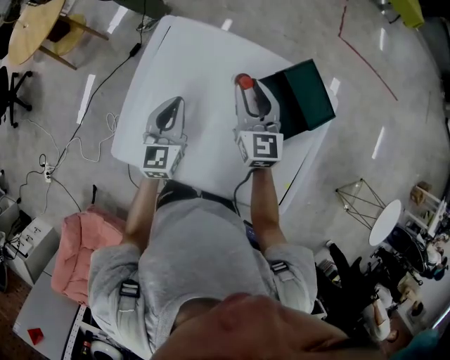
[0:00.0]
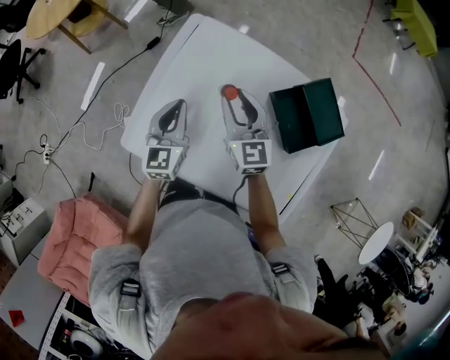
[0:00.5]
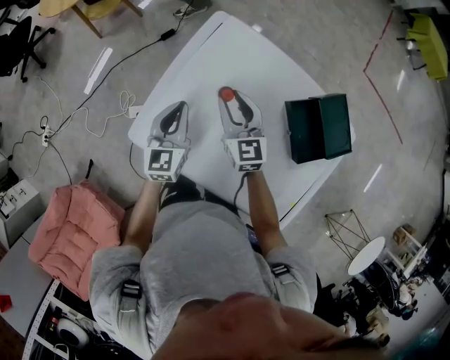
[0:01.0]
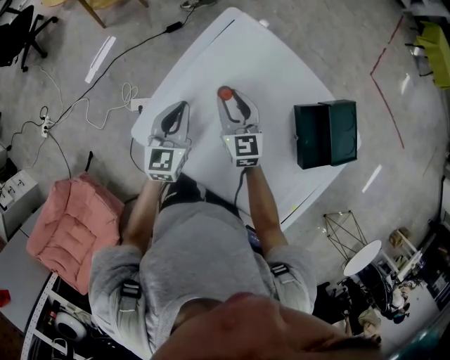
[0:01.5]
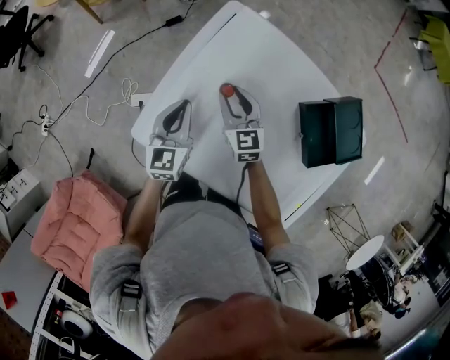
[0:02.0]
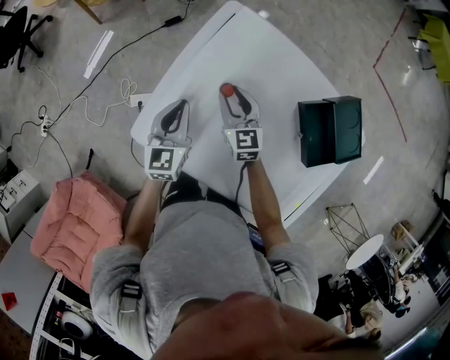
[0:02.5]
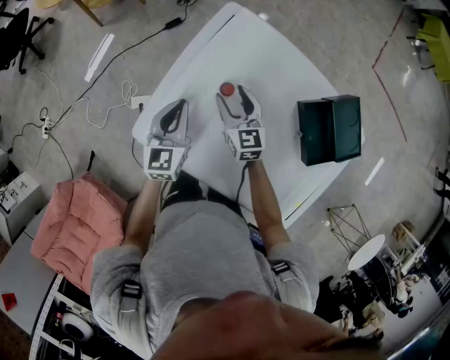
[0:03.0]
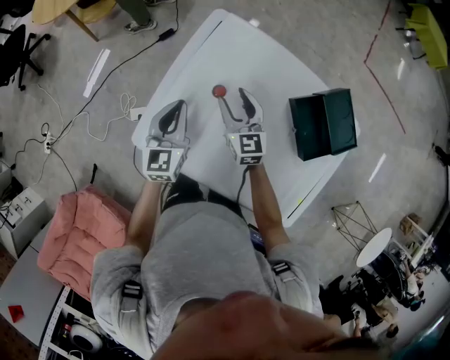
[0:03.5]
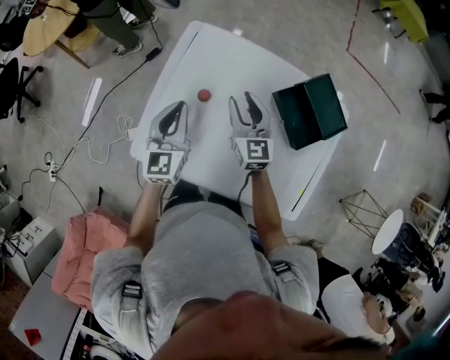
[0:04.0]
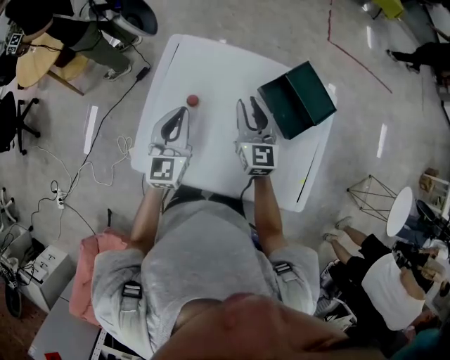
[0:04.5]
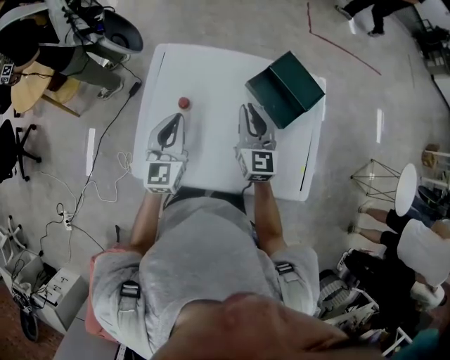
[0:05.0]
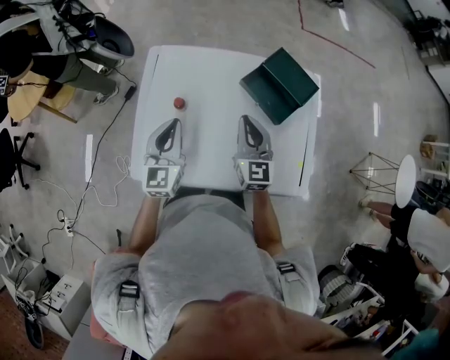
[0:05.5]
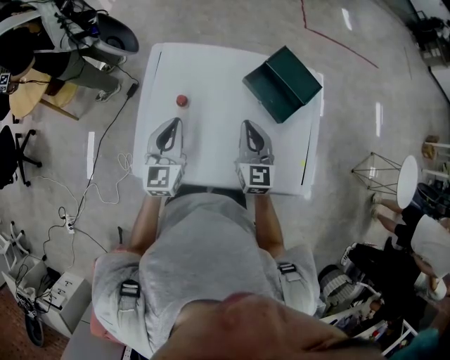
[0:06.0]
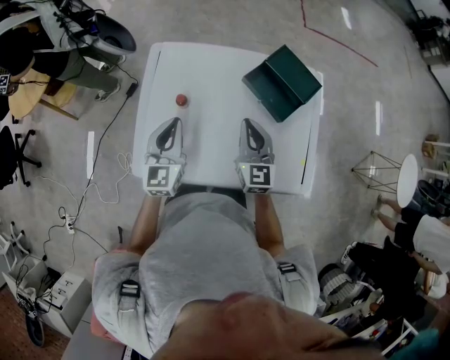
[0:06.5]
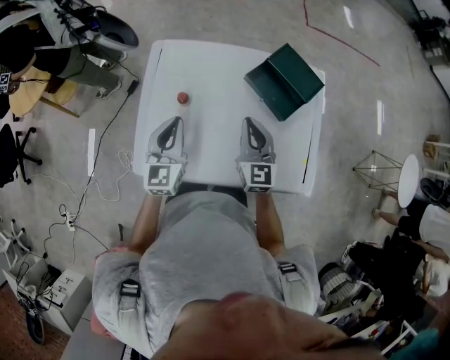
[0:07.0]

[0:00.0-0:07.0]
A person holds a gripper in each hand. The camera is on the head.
0:00.0 to 0:02.0: The left gripper shifts about 15 cm to the left and downward; the right gripper moves to the left and downward, about 25 cm, and changes its angle by about 20 degrees.
0:02.0 to 0:03.5: The right gripper opens its fingers.
0:03.5 to 0:05.0: The right gripper moves about 20 cm, turns by about 30 degrees, and closes up. Meanwhile the left gripper moves upward, approximately 10 cm, and swivels roughly 20 degrees.
0:05.0 to 0:07.0: The right gripper heads backward, covering some 5 cm.

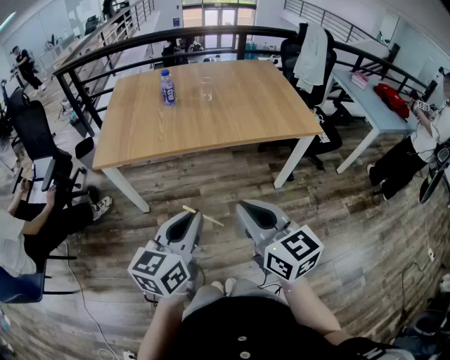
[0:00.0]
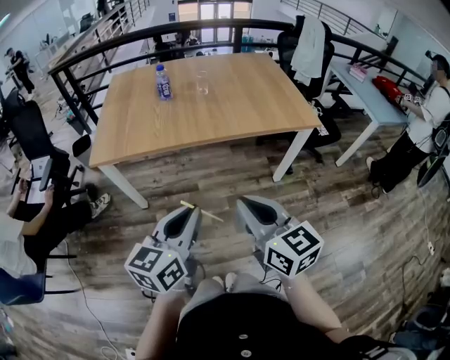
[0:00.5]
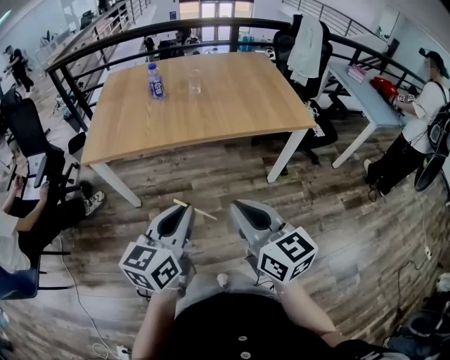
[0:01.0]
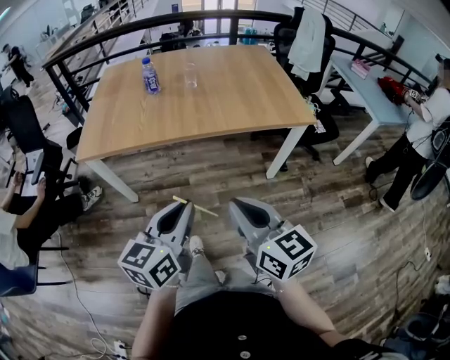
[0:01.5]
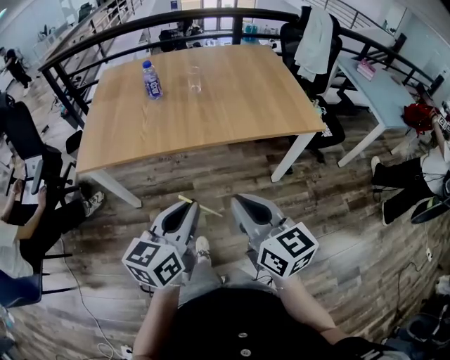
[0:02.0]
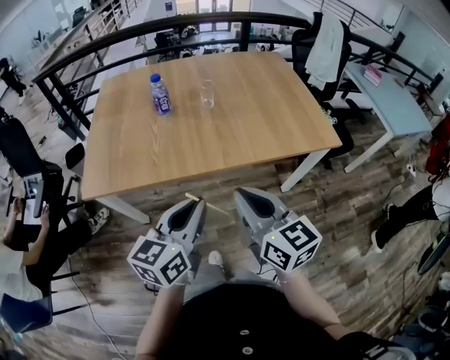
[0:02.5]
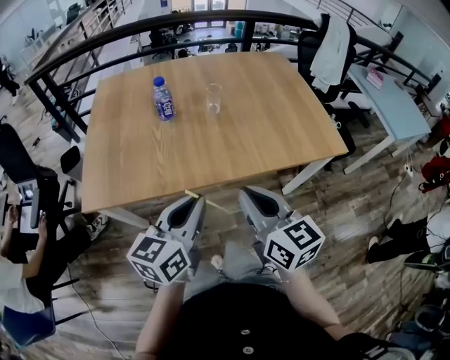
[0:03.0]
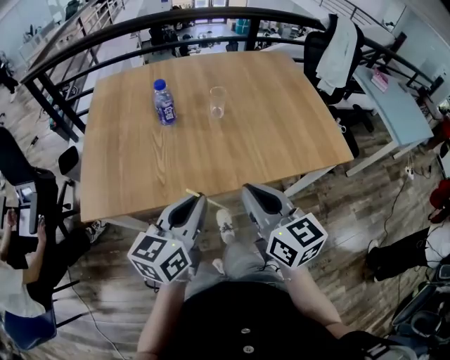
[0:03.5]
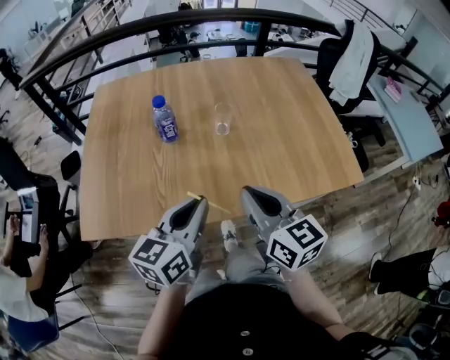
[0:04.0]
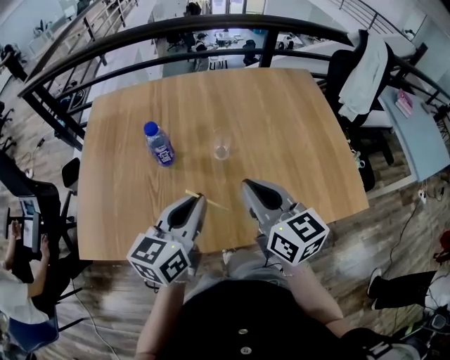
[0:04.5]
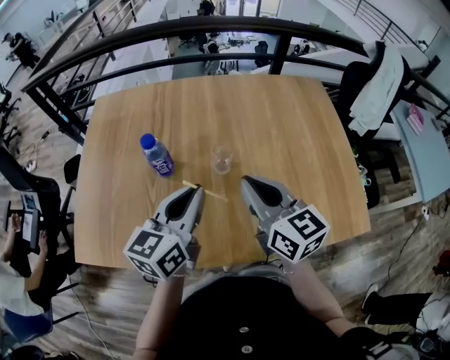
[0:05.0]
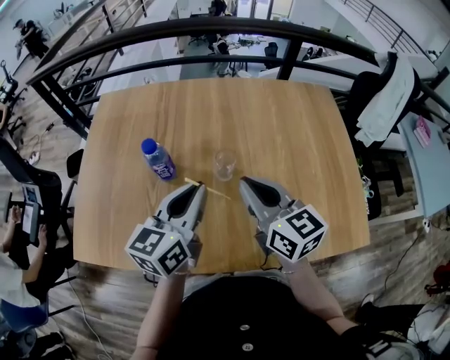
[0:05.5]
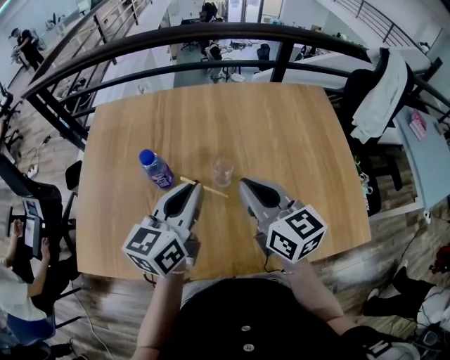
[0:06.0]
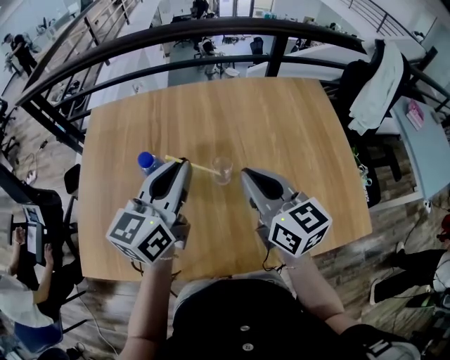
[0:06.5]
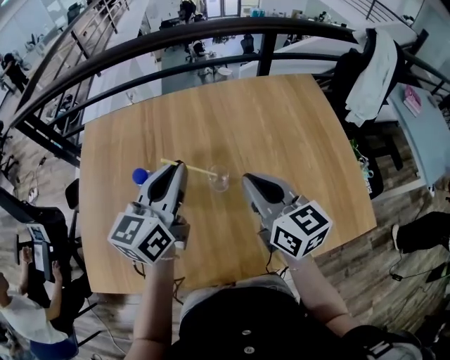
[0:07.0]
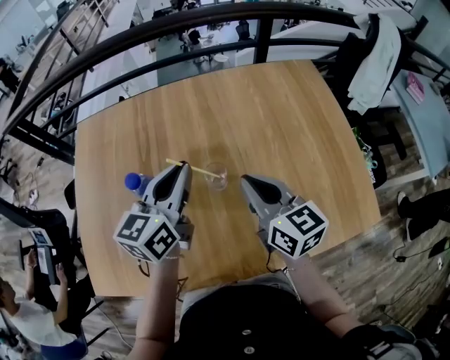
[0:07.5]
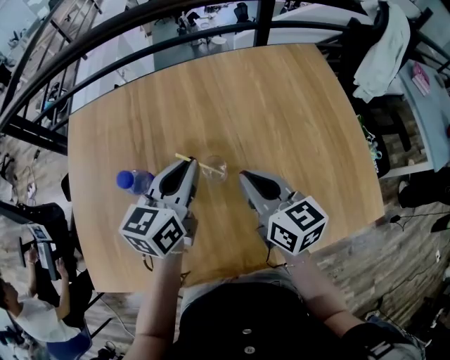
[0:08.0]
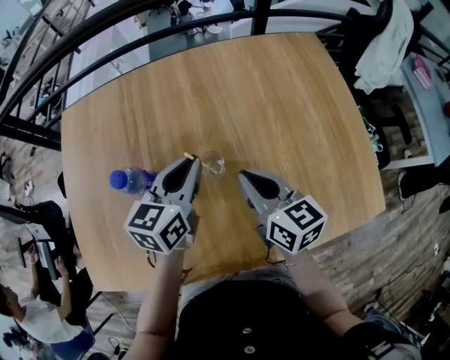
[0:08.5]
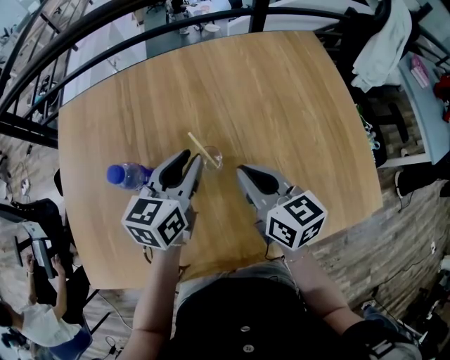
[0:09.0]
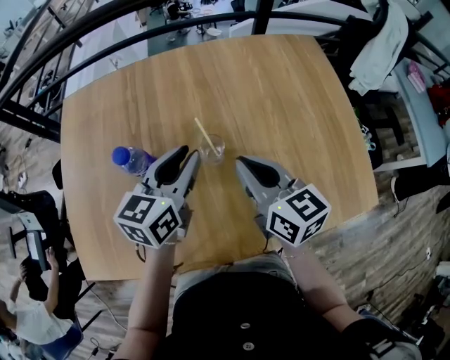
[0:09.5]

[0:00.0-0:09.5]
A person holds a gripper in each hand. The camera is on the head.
0:00.0 to 0:02.0: The grippers both shift forward and to the right by roughly 15 cm.
0:02.0 to 0:04.0: Both grippers move forward, some 35 cm.
0:04.0 to 0:05.5: The grippers both shift forward by approximately 25 cm.
0:05.5 to 0:07.5: The right gripper is displaced forward by approximately 5 cm, while the left gripper is displaced forward by roughly 10 cm.
0:07.5 to 0:09.5: The left gripper travels downward by some 5 cm.

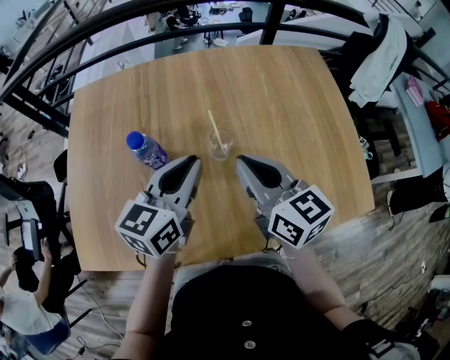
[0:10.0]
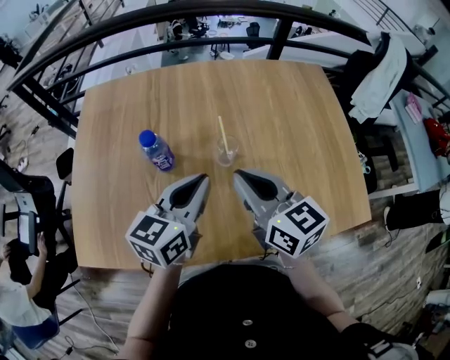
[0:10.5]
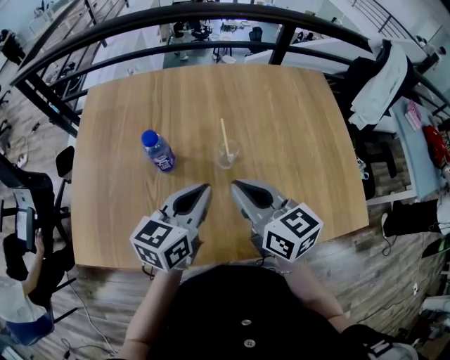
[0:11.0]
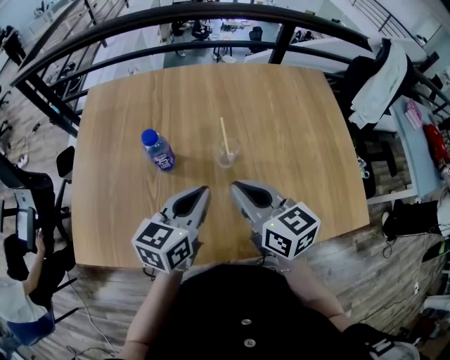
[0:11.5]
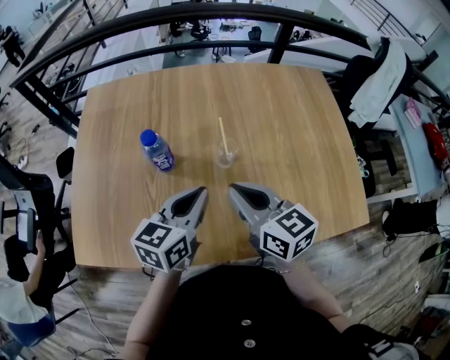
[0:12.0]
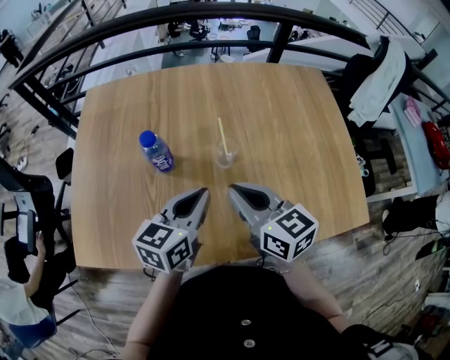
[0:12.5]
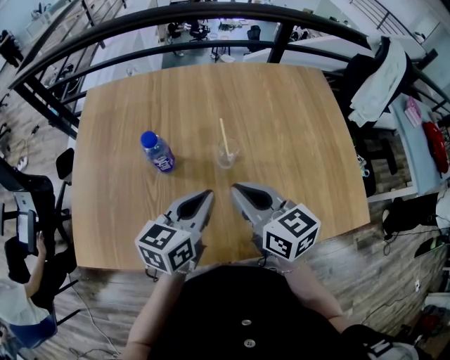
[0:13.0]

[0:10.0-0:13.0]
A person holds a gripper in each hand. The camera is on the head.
0:10.0 to 0:11.5: The right gripper shifts by roughly 5 cm, while the left gripper is displaced backward by approximately 5 cm.
0:11.5 to 0:13.0: Neither gripper changes place.

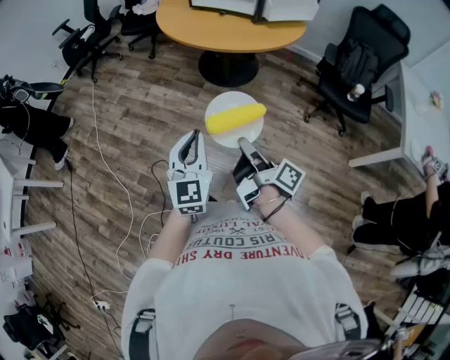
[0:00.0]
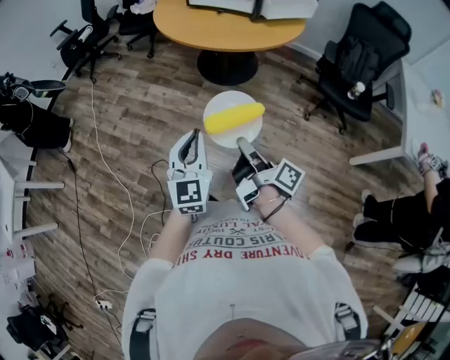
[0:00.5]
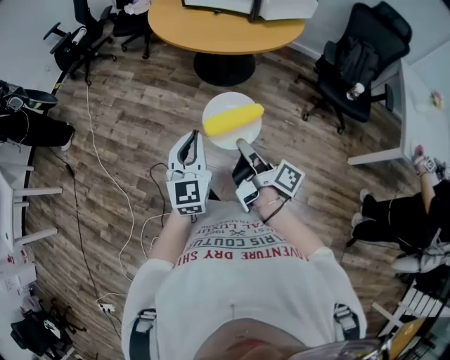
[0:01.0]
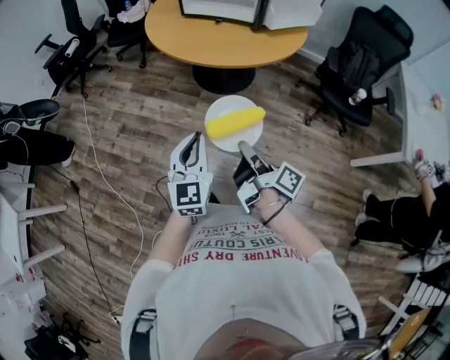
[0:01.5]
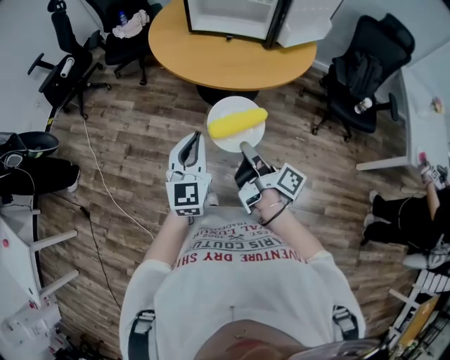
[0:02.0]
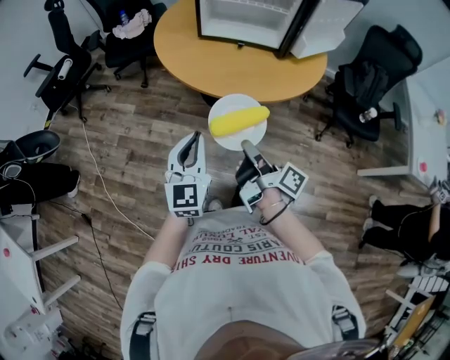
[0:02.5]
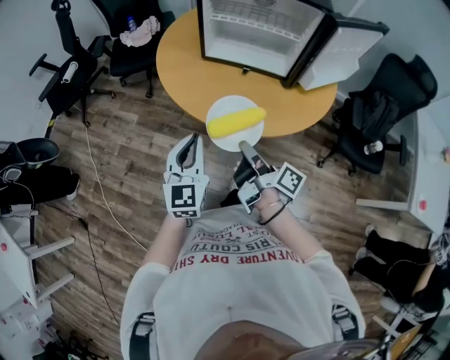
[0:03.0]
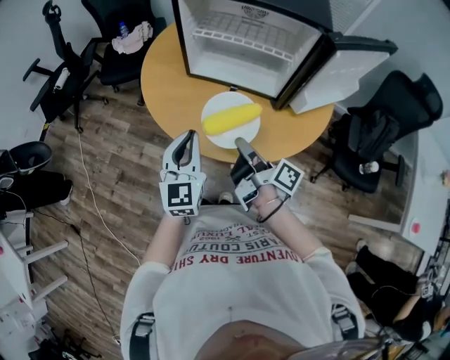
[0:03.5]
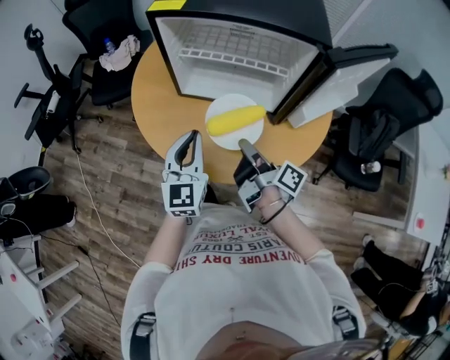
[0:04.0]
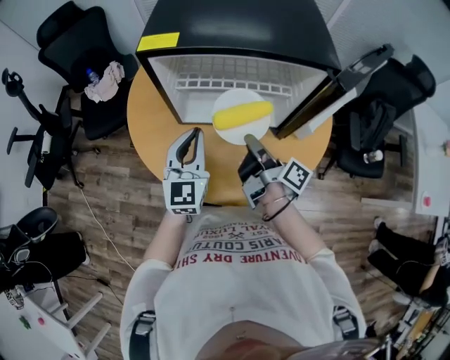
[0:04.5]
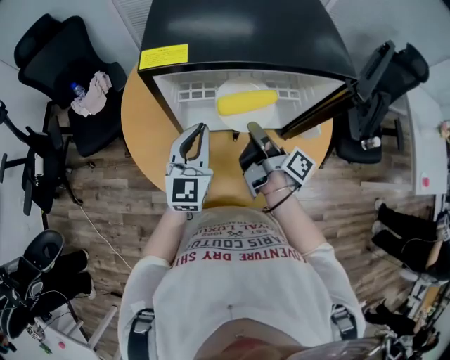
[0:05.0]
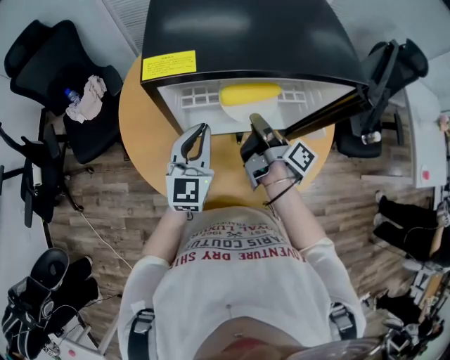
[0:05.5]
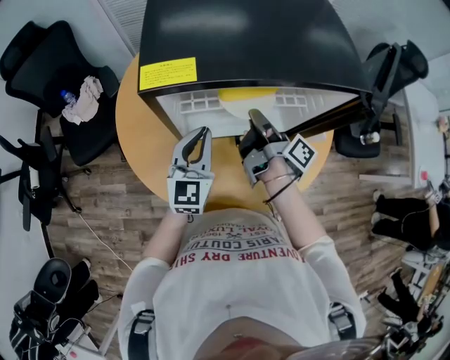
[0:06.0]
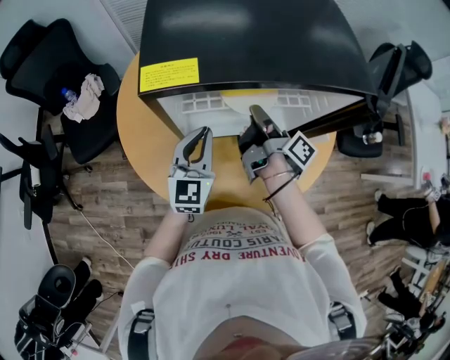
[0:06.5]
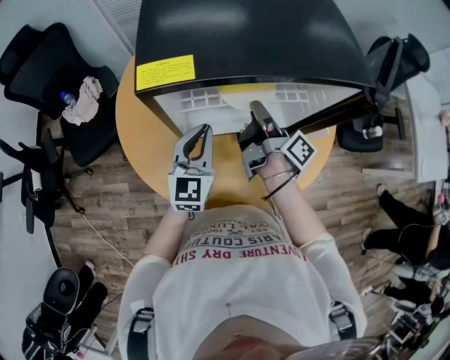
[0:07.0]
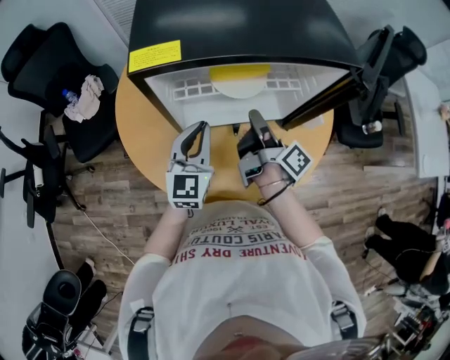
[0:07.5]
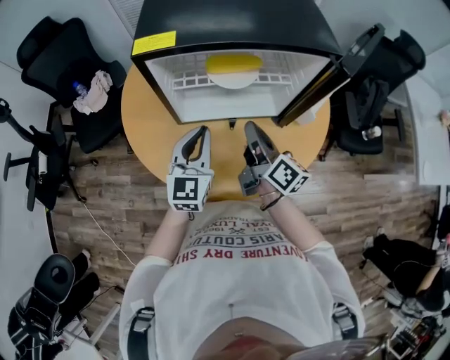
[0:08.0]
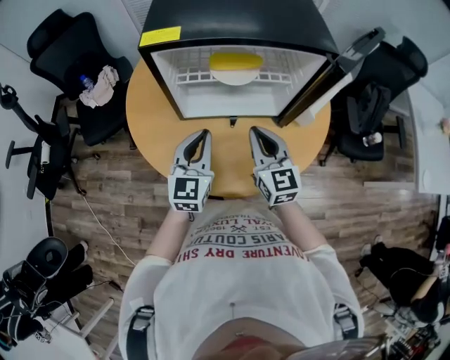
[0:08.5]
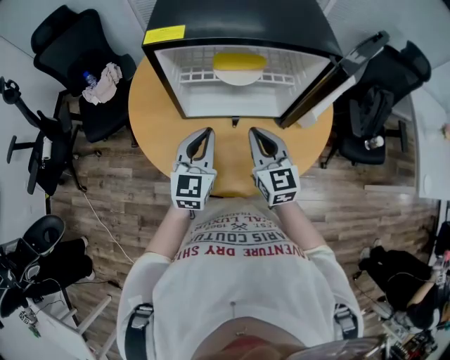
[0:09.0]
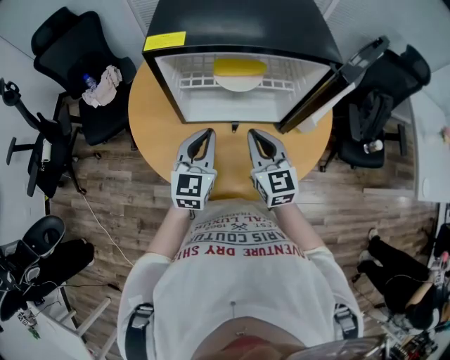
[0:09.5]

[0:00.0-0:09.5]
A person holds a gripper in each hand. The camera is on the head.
0:00.0 to 0:02.0: The left gripper changes place by approximately 30 cm.
0:02.0 to 0:04.0: The left gripper changes place by about 40 cm.
0:04.0 to 0:05.5: The left gripper shifts by some 20 cm, and turns by some 20 degrees.
0:07.5 to 0:09.5: The left gripper moves about 5 cm.
